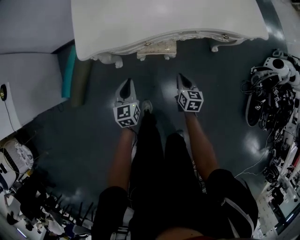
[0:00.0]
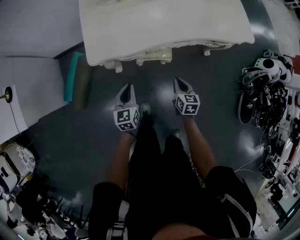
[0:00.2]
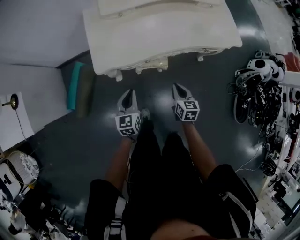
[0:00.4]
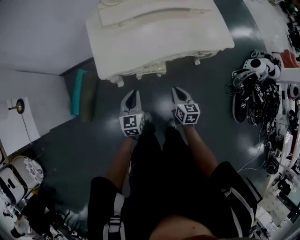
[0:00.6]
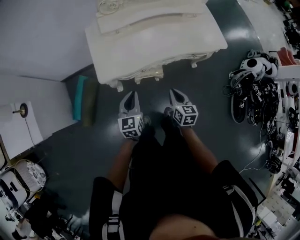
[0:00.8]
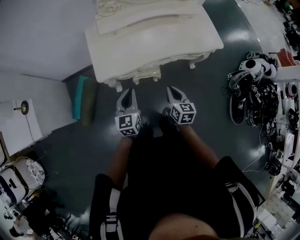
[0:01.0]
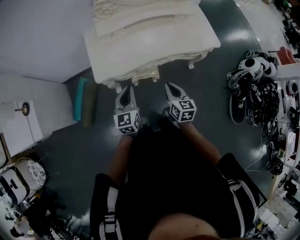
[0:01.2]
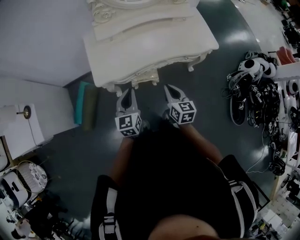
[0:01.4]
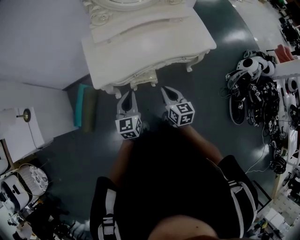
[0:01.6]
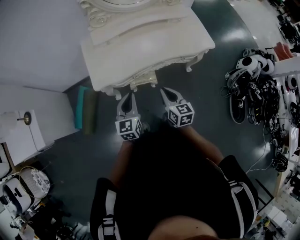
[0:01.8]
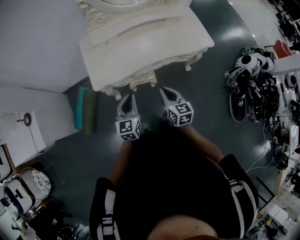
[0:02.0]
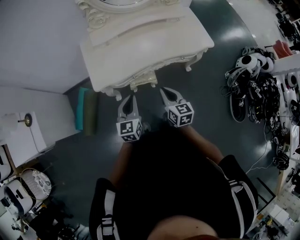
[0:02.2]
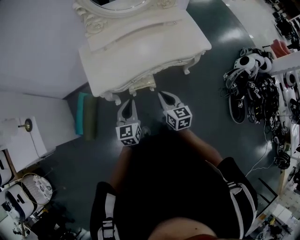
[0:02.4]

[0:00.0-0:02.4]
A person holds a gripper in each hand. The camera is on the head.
0:00.0 to 0:01.2: Both grippers travel together upward, about 35 cm.
0:01.2 to 0:02.4: The grippers make only small movements.

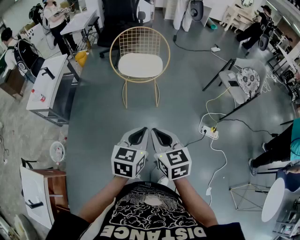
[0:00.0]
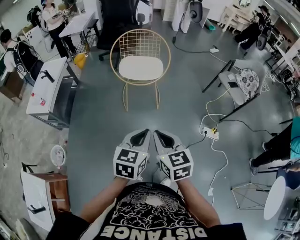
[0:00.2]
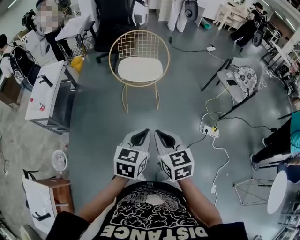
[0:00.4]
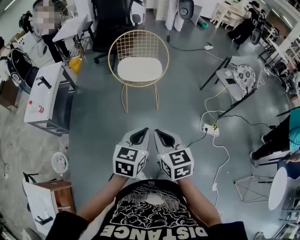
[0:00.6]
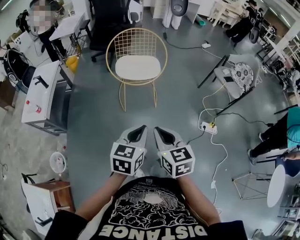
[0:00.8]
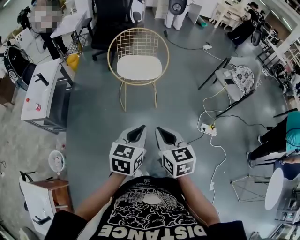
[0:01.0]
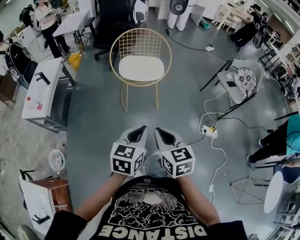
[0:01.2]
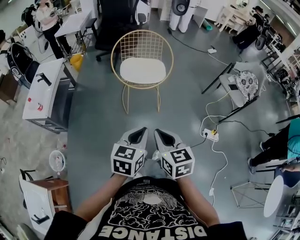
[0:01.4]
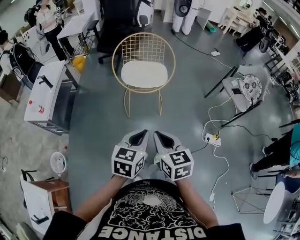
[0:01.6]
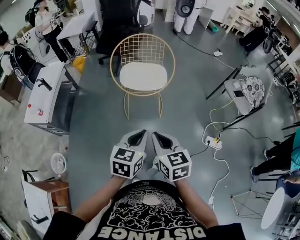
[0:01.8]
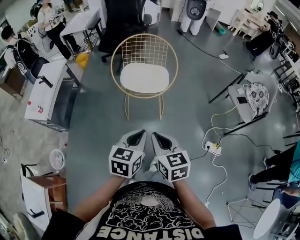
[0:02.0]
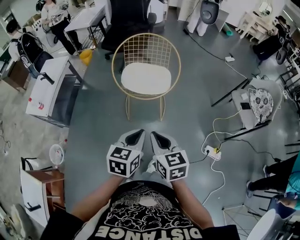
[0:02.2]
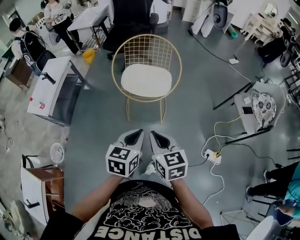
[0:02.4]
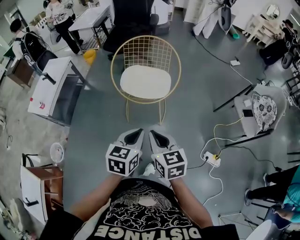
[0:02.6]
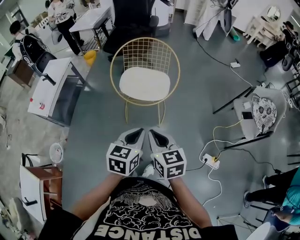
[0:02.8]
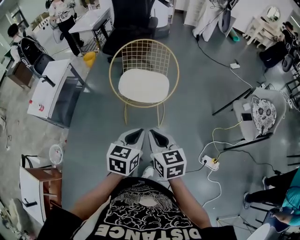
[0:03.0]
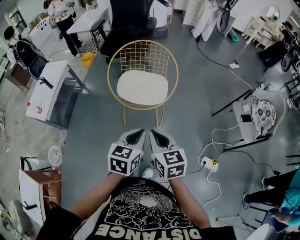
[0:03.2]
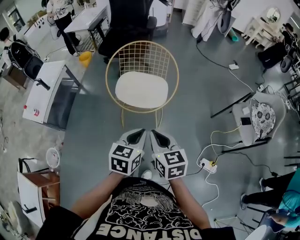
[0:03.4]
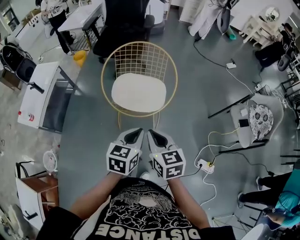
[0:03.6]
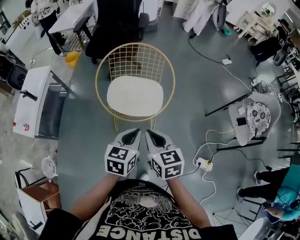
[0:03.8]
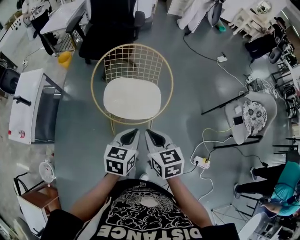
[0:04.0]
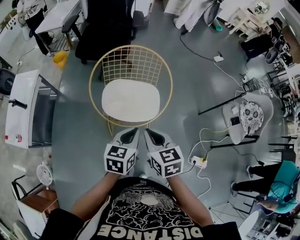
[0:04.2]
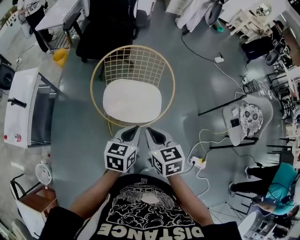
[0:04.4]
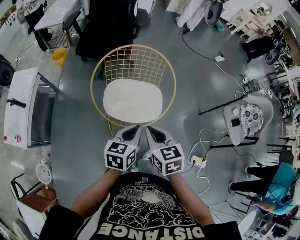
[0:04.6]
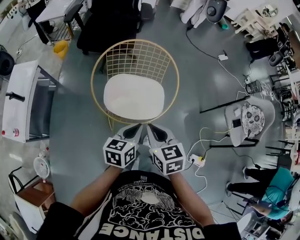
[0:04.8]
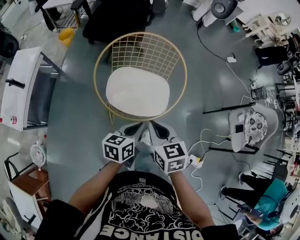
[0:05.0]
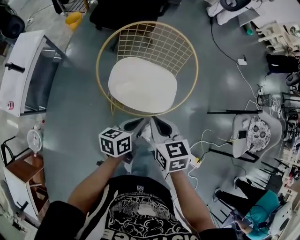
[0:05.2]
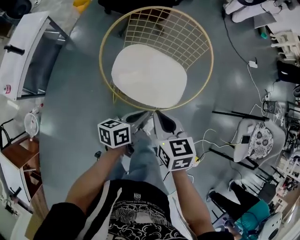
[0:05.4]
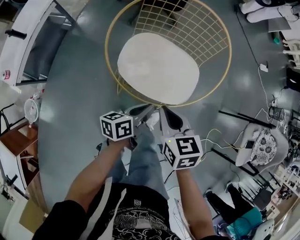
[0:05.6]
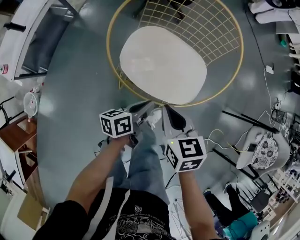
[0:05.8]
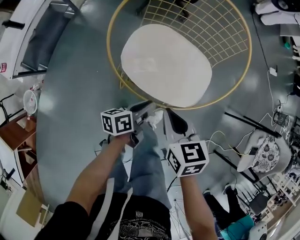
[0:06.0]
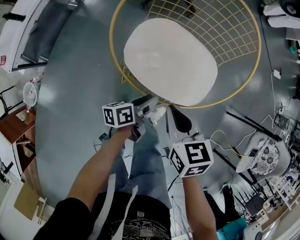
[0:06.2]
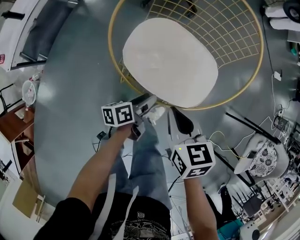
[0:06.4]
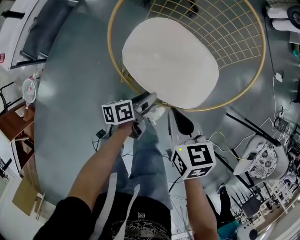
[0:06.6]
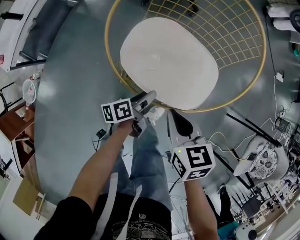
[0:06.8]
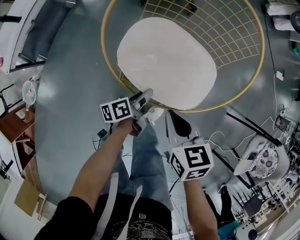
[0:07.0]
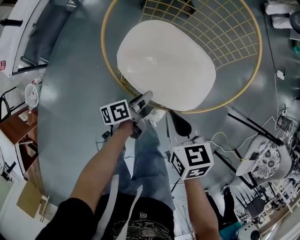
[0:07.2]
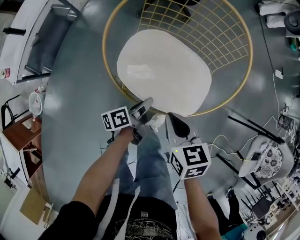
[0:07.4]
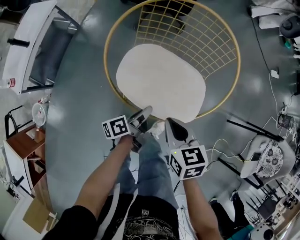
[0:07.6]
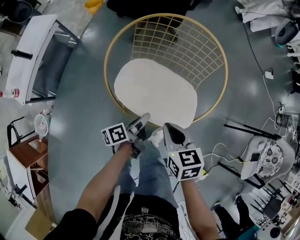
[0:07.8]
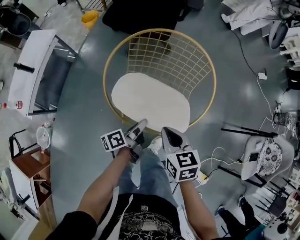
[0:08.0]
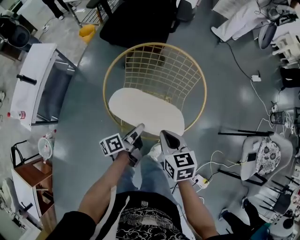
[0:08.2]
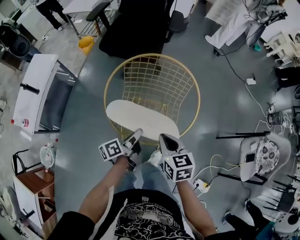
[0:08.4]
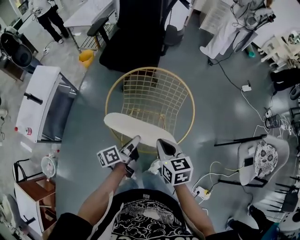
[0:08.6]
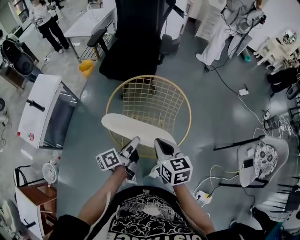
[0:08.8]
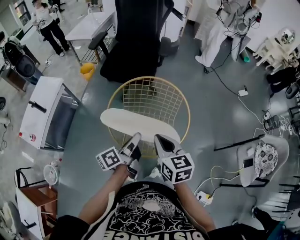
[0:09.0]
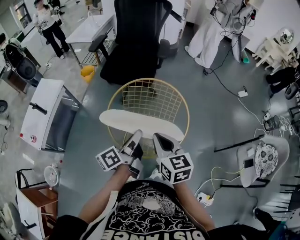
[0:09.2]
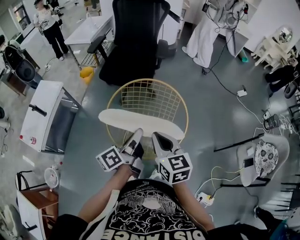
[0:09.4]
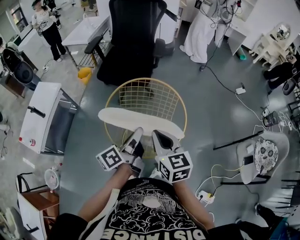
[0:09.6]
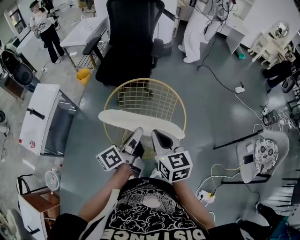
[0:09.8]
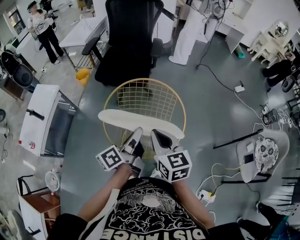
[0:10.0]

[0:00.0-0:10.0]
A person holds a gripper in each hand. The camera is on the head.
0:00.0 to 0:01.4: Both grippers travel together to the left and forward, some 10 cm.
0:01.4 to 0:02.8: The grippers both shift forward and to the right by about 20 cm.
0:02.8 to 0:04.2: Both grippers travel together forward, roughly 20 cm.
0:04.2 to 0:05.8: Both grippers move downward, roughly 20 cm. The left gripper rotates around the line of its fingers by approximately 50 degrees, counterclockwise from behind.
0:05.8 to 0:07.2: The left gripper goes approximately 10 cm downward, changes its angle by some 20 degrees, and opens, then closes again.
0:07.2 to 0:08.6: The left gripper travels upward by some 25 cm. The right gripper travels upward by approximately 15 cm.
0:08.6 to 0:10.0: The two grippers go approximately 10 cm upward.

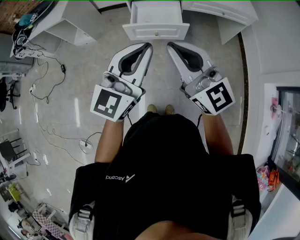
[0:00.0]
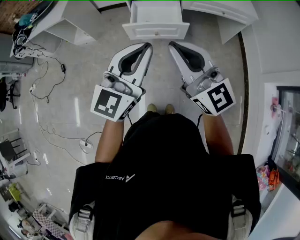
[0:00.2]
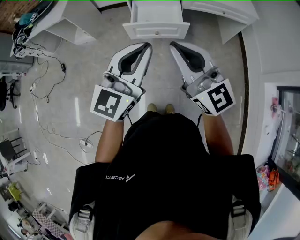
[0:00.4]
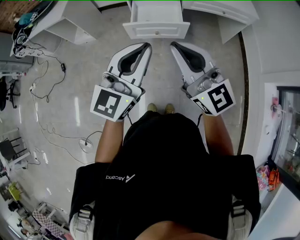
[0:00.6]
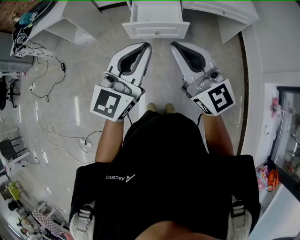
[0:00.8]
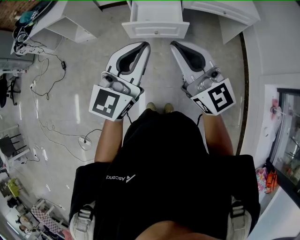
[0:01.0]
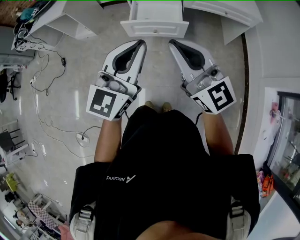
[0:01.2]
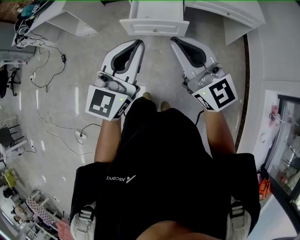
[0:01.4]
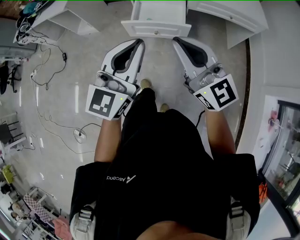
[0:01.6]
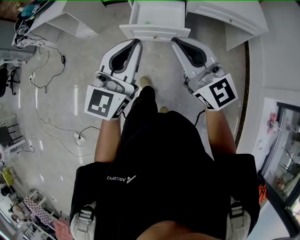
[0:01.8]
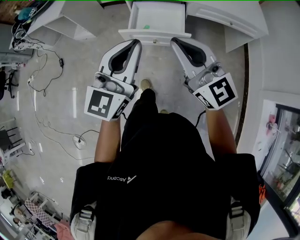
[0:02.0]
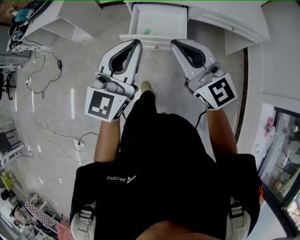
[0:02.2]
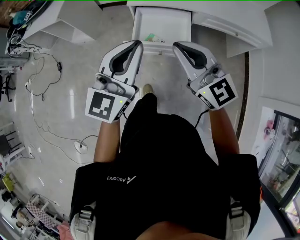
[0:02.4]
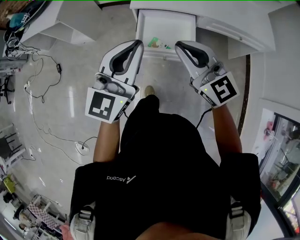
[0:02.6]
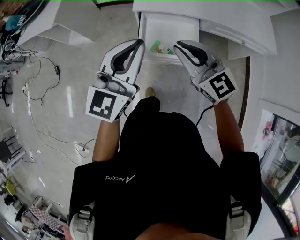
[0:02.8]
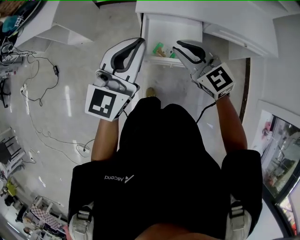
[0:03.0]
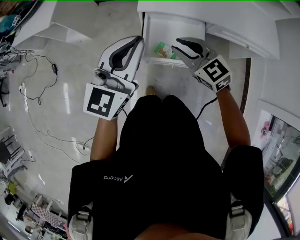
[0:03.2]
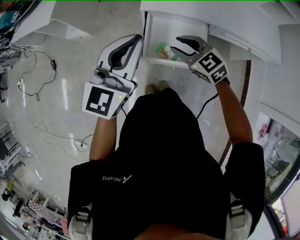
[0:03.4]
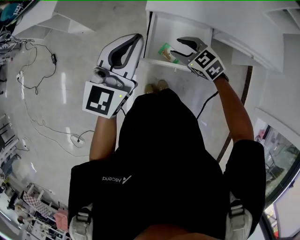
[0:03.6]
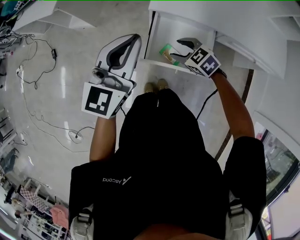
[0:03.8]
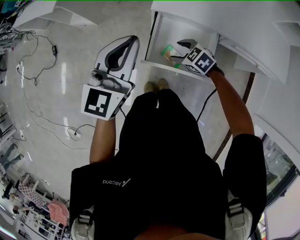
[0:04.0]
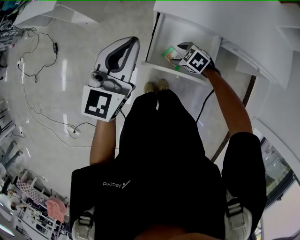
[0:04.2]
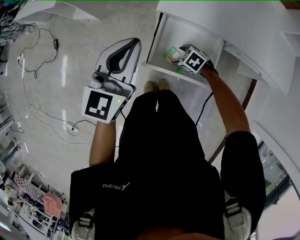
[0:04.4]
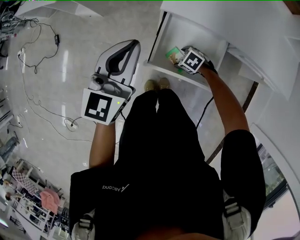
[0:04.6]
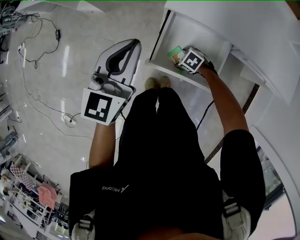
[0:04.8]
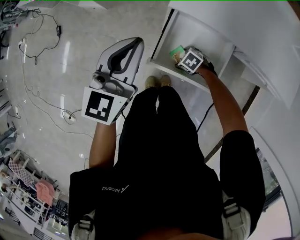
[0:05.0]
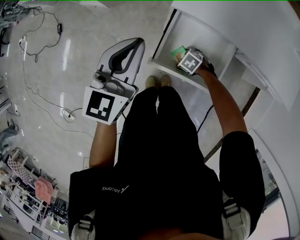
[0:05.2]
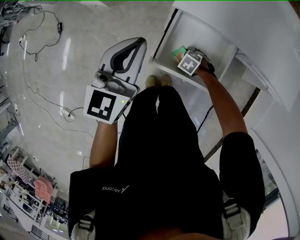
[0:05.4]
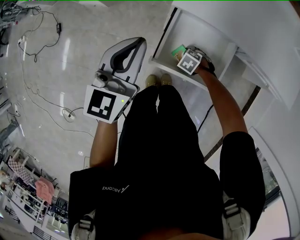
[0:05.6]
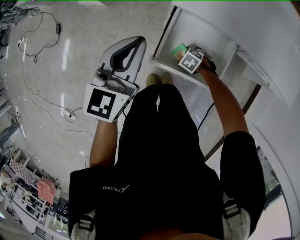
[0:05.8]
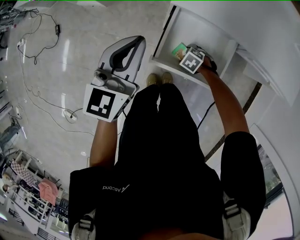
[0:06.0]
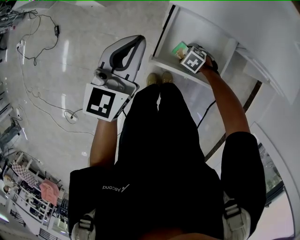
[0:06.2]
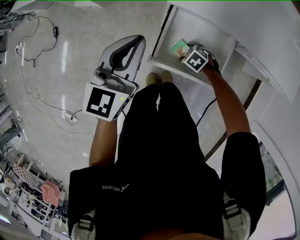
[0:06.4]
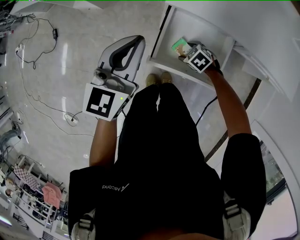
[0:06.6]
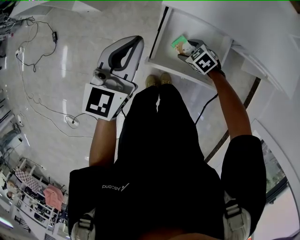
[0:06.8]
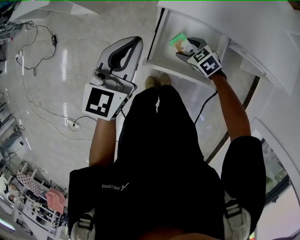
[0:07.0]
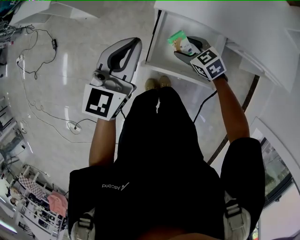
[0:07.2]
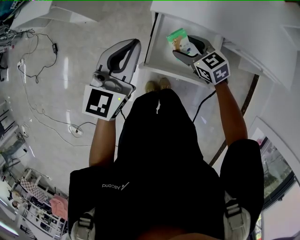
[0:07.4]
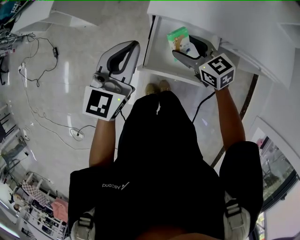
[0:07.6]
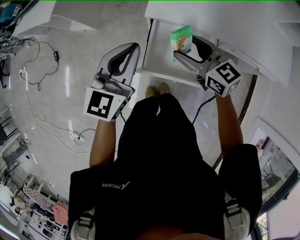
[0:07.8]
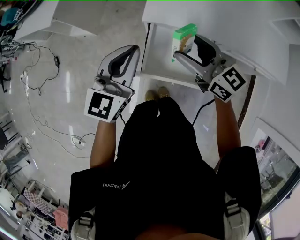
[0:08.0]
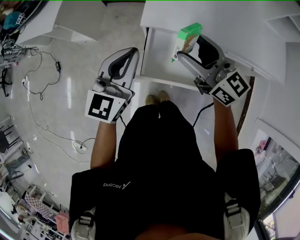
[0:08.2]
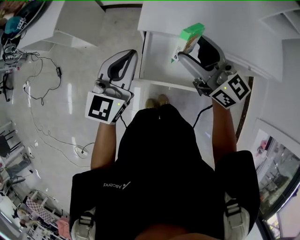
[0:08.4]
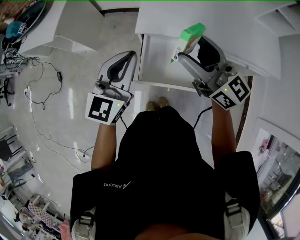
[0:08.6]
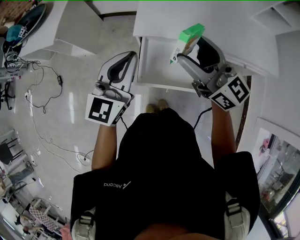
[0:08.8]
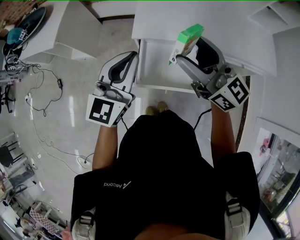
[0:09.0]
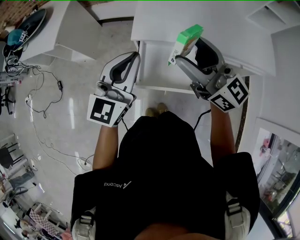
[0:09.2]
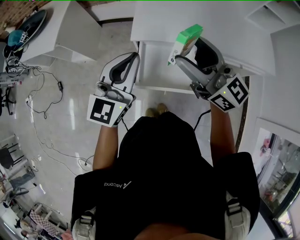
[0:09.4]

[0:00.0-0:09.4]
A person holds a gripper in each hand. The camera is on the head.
0:00.0 to 0:01.6: The left gripper ends up approximately 5 cm from where it was. The right gripper moves to the right and forward, roughly 10 cm.
0:01.6 to 0:03.2: The pair of grippers is taken forward, approximately 40 cm. The right gripper shifts about 20 cm downward, and tilts its fingers about 40 degrees downward.
0:03.2 to 0:04.8: The left gripper heads downward, covering some 10 cm, and rotates some 20 degrees; the right gripper shifts approximately 35 cm downward, tips its fingers downward by about 40 degrees, and opens up.
0:04.8 to 0:06.2: There are only small adjustments of the grippers.
0:06.2 to 0:07.8: The right gripper goes approximately 35 cm upward, and points its fingers approximately 60 degrees further upward. The left gripper changes place by about 10 cm.
0:07.8 to 0:09.4: The left gripper is displaced upward and to the right by some 10 cm. Meanwhile the right gripper is displaced upward by some 20 cm, and swivels approximately 30 degrees.

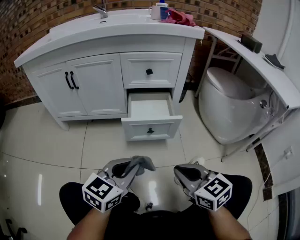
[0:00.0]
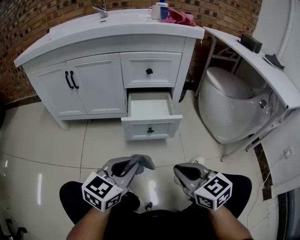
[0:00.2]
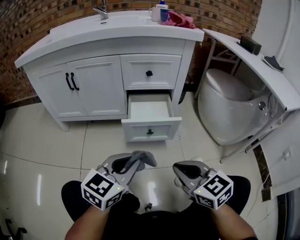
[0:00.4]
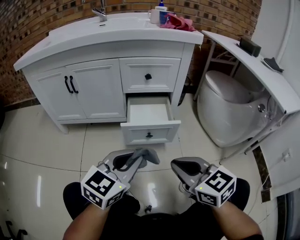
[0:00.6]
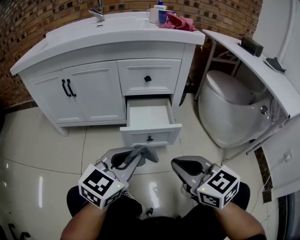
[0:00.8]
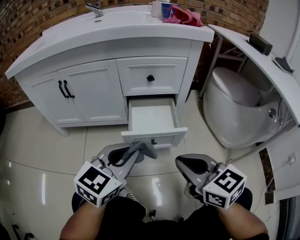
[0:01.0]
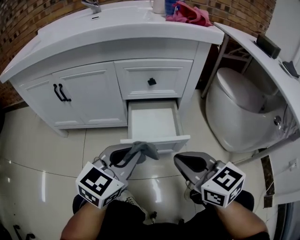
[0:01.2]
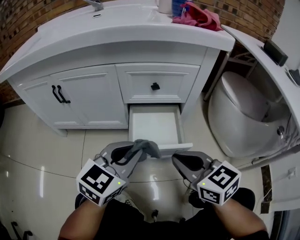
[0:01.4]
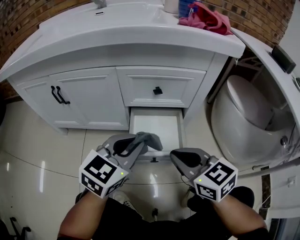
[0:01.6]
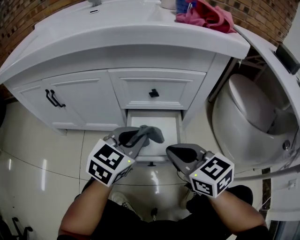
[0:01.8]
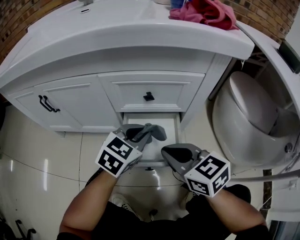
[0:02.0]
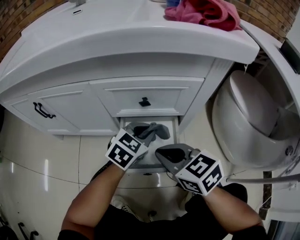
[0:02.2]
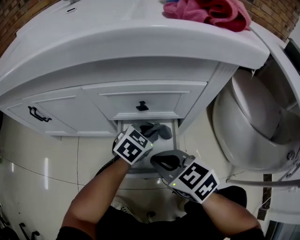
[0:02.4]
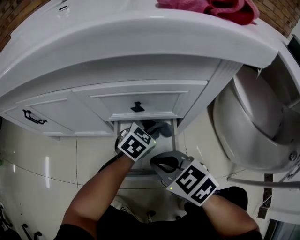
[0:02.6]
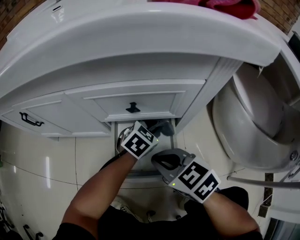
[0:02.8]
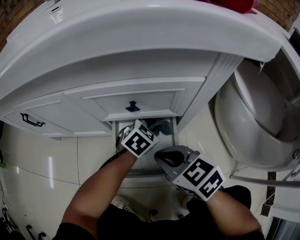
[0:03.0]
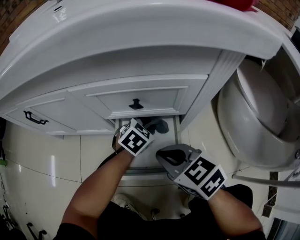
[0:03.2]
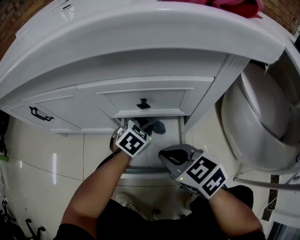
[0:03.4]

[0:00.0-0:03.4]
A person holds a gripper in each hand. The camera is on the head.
0:00.0 to 0:01.6: Both grippers travel together forward, roughly 25 cm.
0:01.6 to 0:03.4: The right gripper heads forward and downward, covering roughly 10 cm, while the left gripper goes some 30 cm downward and forward, and tips its fingers downward by about 30 degrees.
